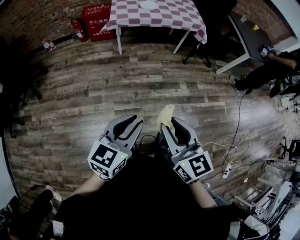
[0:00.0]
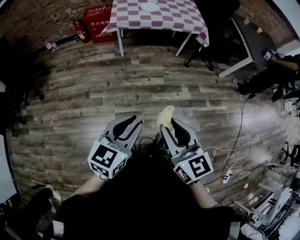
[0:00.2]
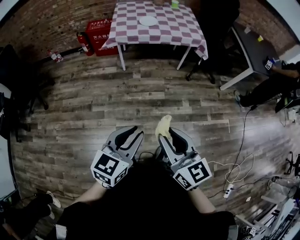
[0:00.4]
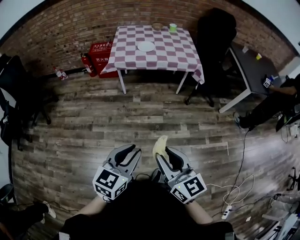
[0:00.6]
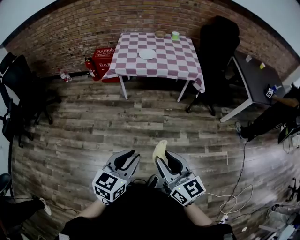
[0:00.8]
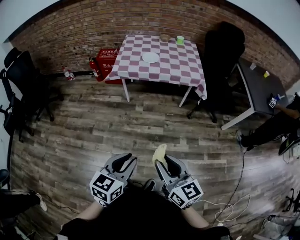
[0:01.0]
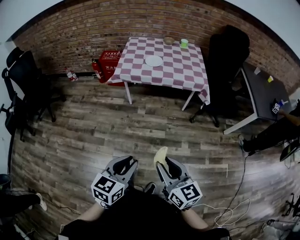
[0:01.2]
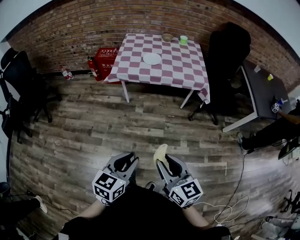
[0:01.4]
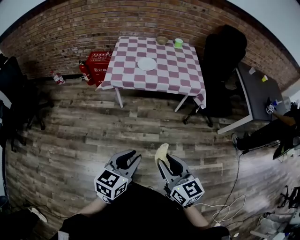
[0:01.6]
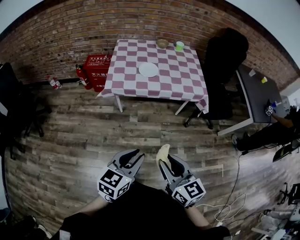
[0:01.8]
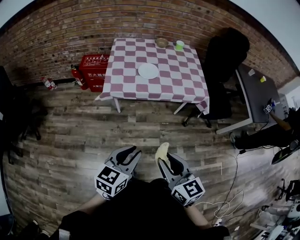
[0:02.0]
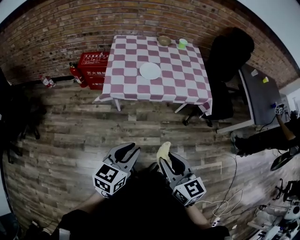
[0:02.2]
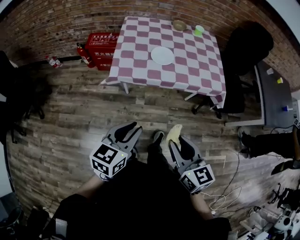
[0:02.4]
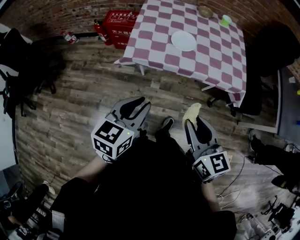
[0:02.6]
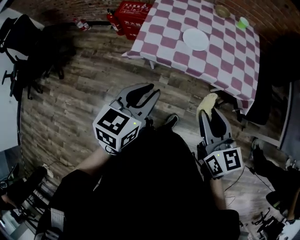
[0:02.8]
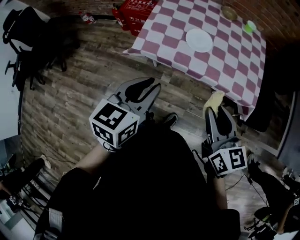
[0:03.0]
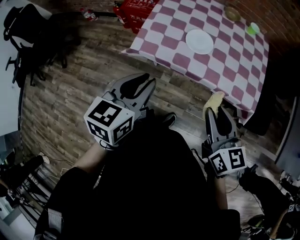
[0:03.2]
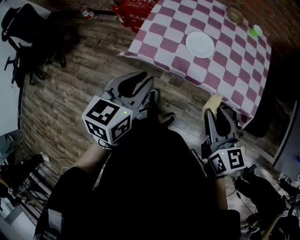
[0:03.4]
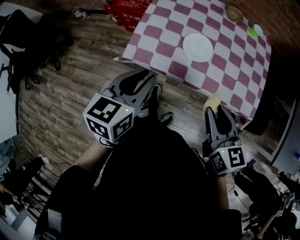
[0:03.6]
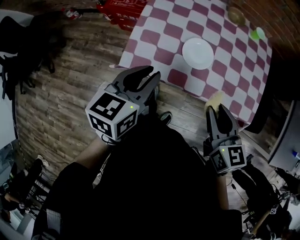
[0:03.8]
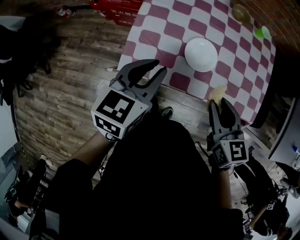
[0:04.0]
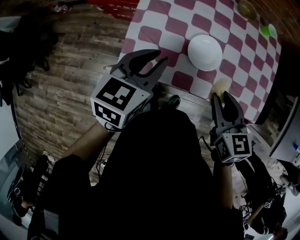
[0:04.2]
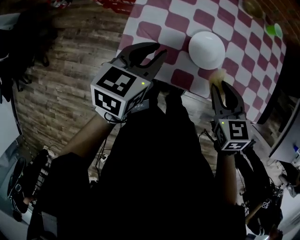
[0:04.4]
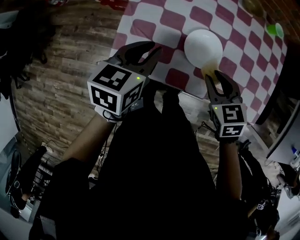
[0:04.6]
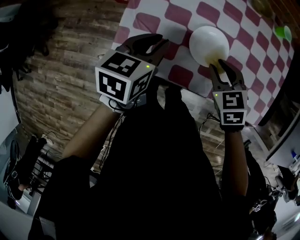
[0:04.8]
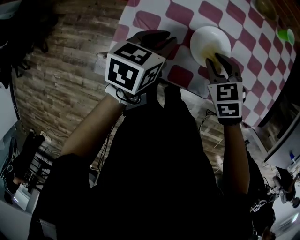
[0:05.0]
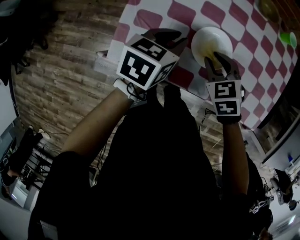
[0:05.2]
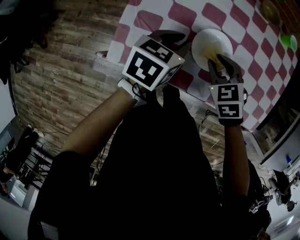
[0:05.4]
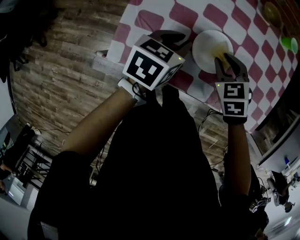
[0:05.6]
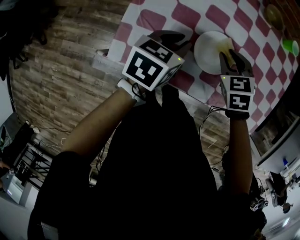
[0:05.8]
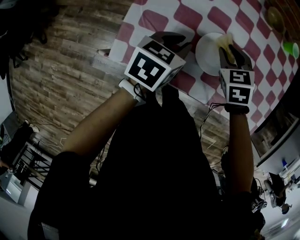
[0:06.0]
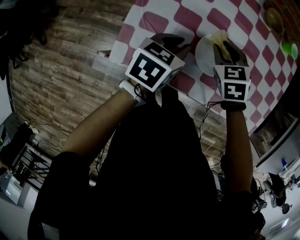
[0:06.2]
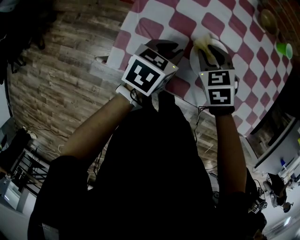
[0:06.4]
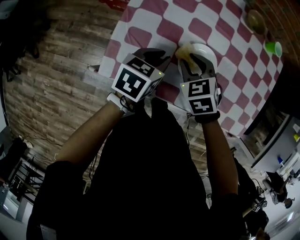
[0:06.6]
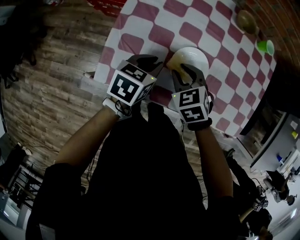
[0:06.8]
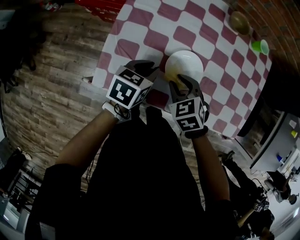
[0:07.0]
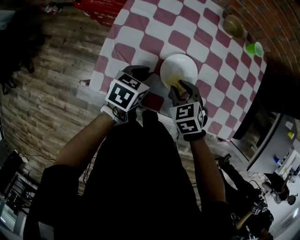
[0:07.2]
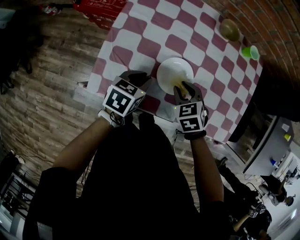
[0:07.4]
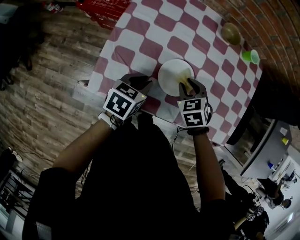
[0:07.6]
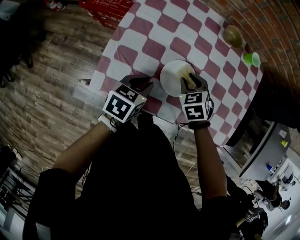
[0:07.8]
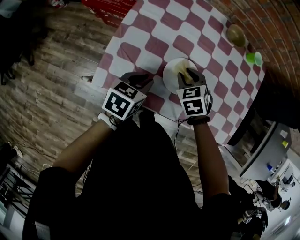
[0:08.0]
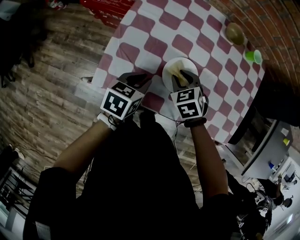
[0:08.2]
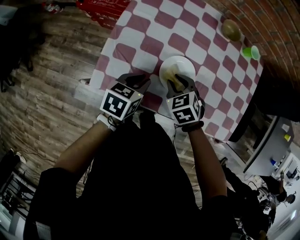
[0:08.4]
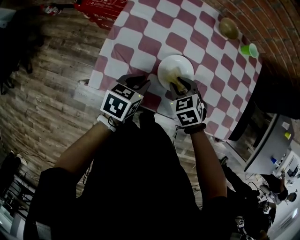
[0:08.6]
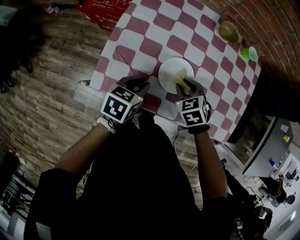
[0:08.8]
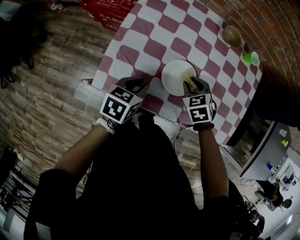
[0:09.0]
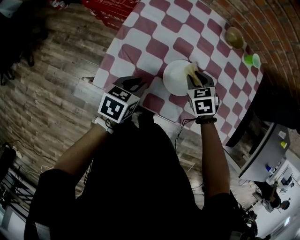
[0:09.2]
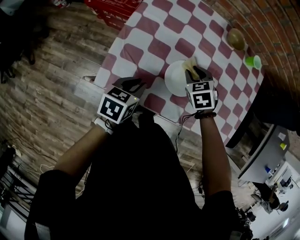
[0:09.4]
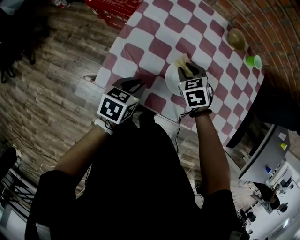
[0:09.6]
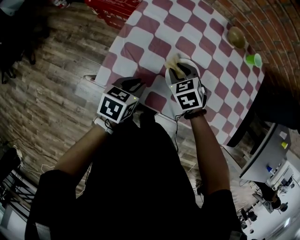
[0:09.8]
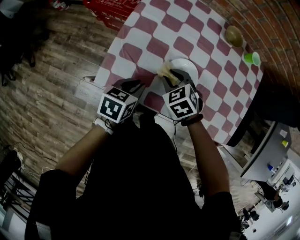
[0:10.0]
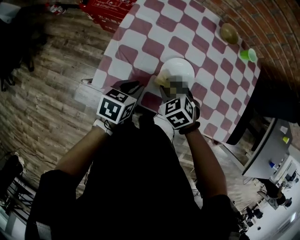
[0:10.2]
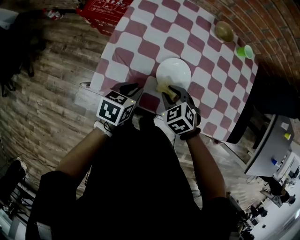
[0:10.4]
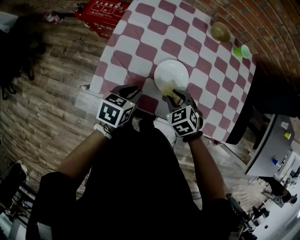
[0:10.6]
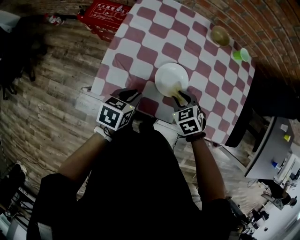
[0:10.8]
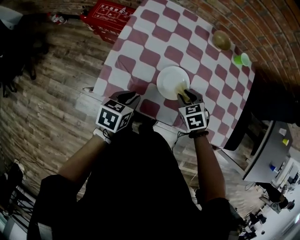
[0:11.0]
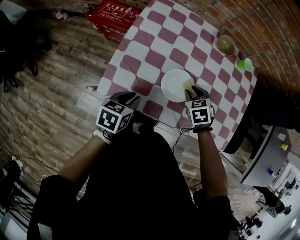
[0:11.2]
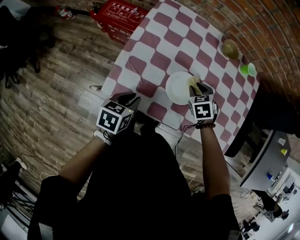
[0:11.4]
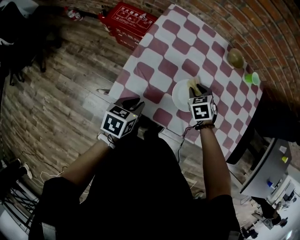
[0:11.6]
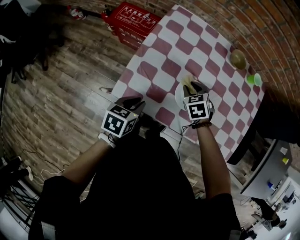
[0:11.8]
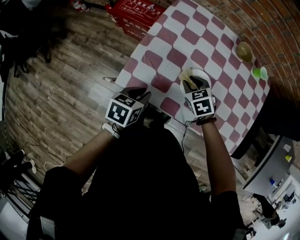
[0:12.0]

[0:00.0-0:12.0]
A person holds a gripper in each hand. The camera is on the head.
0.0 to 1.6 s: The grippers both shift forward and to the right by roughly 30 cm.
1.6 to 3.0 s: The two grippers travel together, forward, roughly 40 cm.
3.0 to 4.4 s: Both grippers travel together forward and downward, about 35 cm. The right gripper turns by roughly 30 degrees.
4.4 to 6.0 s: The left gripper goes approximately 10 cm downward and forward, while the right gripper goes roughly 20 cm forward and downward, and turns by some 20 degrees.
6.0 to 7.6 s: The right gripper travels to the left and back again, roughly 5 cm each way.
7.6 to 9.0 s: There are only small adjustments of the grippers.
9.0 to 10.4 s: The right gripper shifts roughly 10 cm backward.
10.4 to 12.0 s: The right gripper goes roughly 5 cm forward, while the left gripper is displaced to the left by roughly 5 cm.

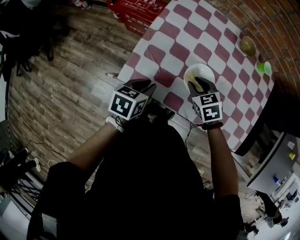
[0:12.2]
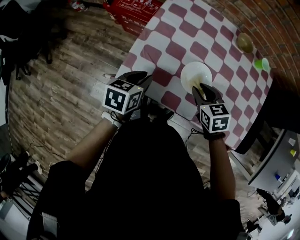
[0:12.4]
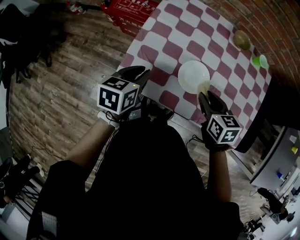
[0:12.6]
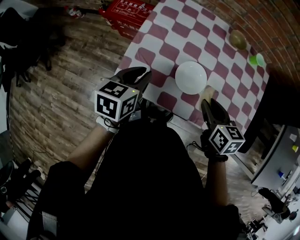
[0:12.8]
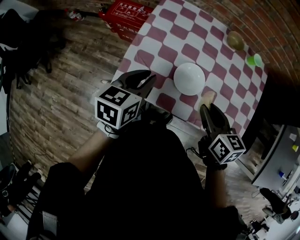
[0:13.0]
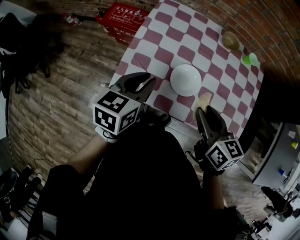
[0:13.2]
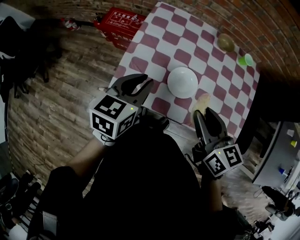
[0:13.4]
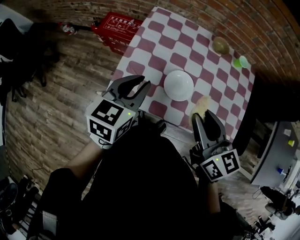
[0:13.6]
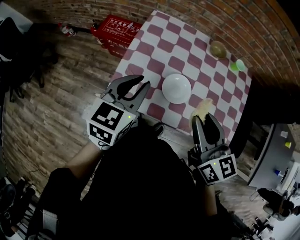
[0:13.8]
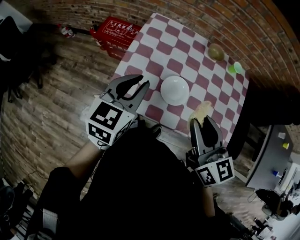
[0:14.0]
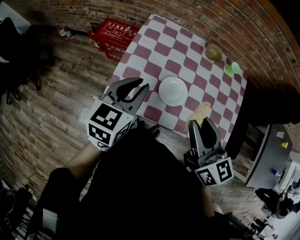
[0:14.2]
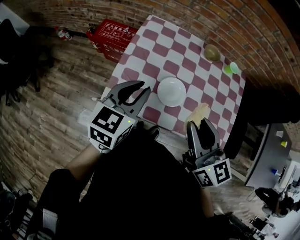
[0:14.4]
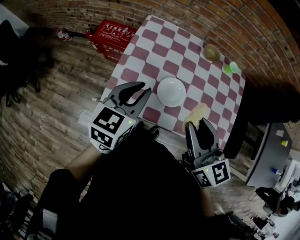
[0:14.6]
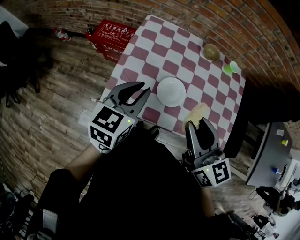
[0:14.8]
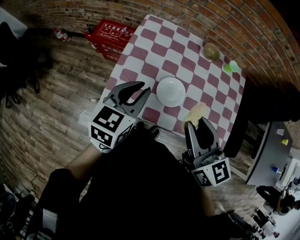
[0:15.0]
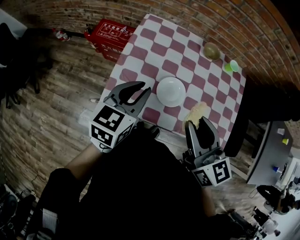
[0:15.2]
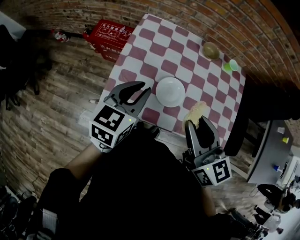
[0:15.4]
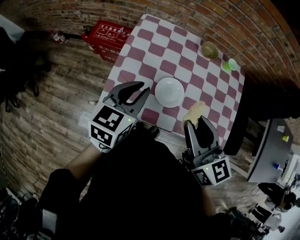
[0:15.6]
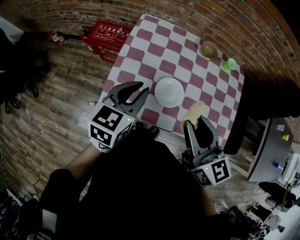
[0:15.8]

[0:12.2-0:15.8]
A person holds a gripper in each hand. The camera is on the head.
12.2 to 14.0 s: The two grippers go roughly 25 cm upward. The right gripper points its fingers roughly 40 degrees further upward. Meanwhile the left gripper changes its angle by about 30 degrees.
14.0 to 15.8 s: There are only small adjustments of the grippers.

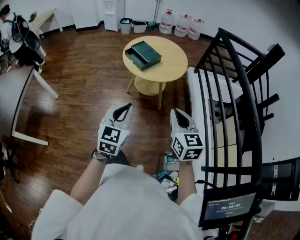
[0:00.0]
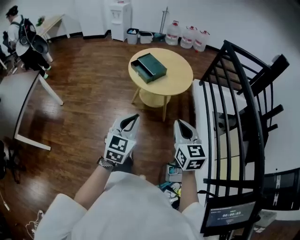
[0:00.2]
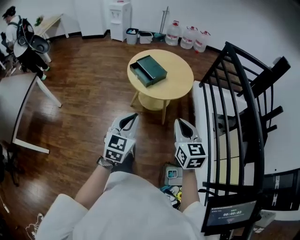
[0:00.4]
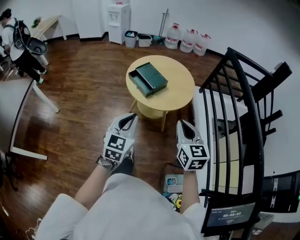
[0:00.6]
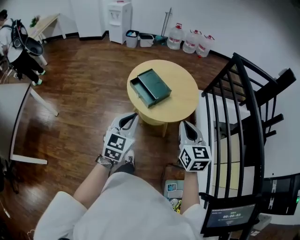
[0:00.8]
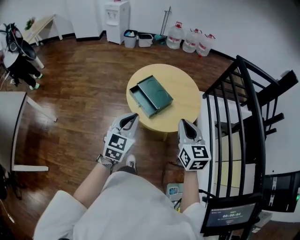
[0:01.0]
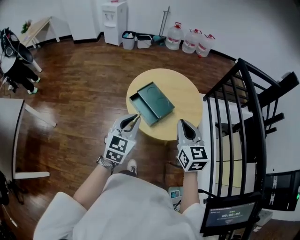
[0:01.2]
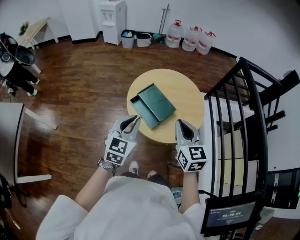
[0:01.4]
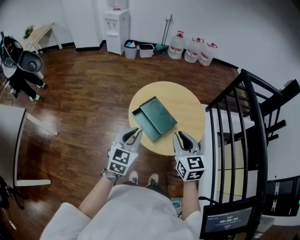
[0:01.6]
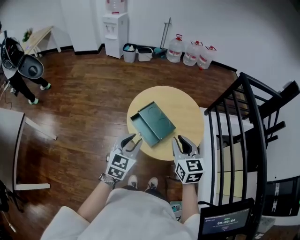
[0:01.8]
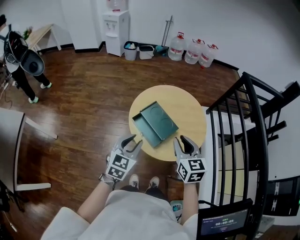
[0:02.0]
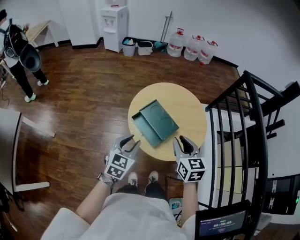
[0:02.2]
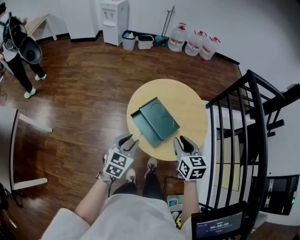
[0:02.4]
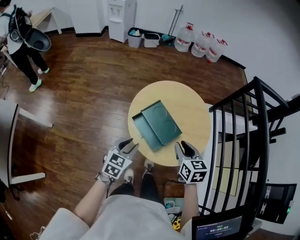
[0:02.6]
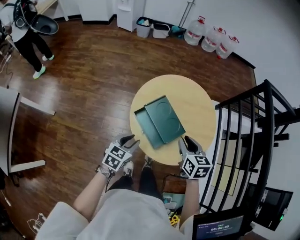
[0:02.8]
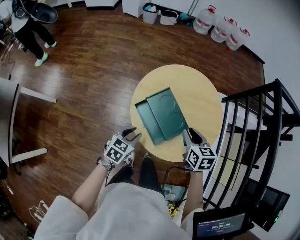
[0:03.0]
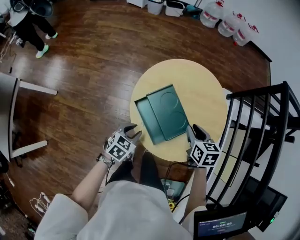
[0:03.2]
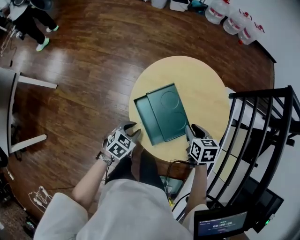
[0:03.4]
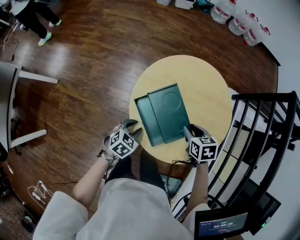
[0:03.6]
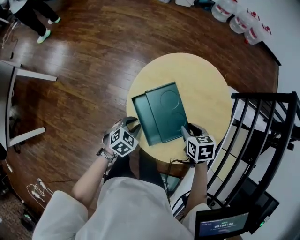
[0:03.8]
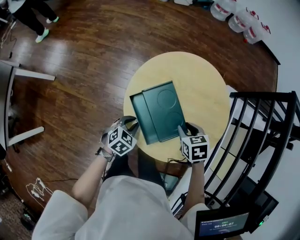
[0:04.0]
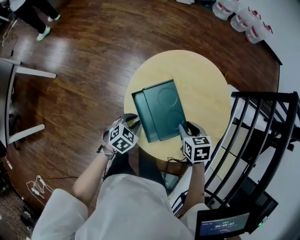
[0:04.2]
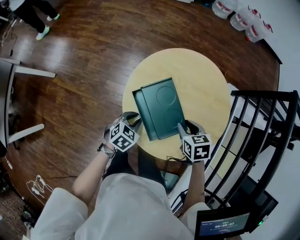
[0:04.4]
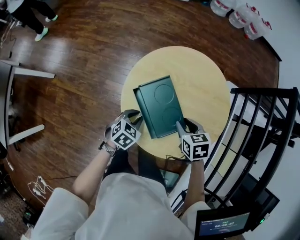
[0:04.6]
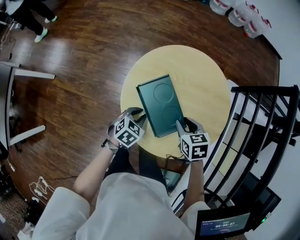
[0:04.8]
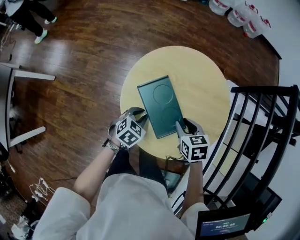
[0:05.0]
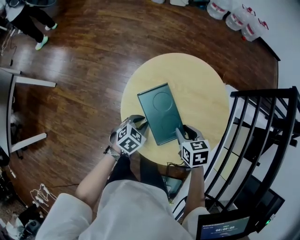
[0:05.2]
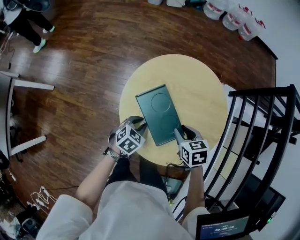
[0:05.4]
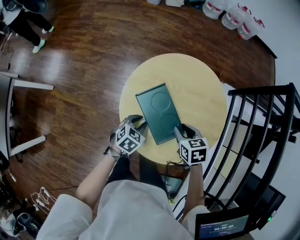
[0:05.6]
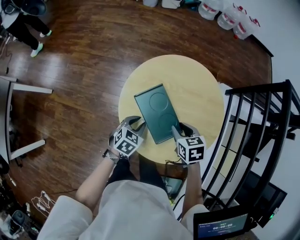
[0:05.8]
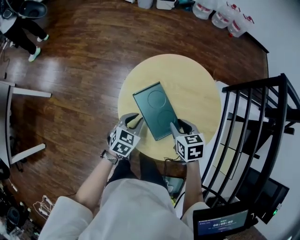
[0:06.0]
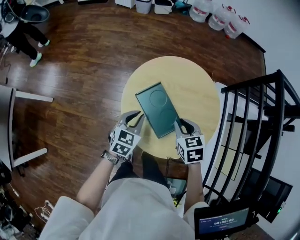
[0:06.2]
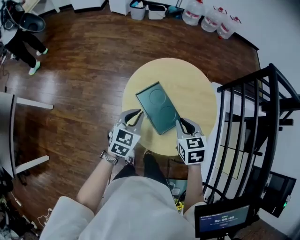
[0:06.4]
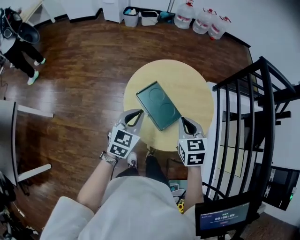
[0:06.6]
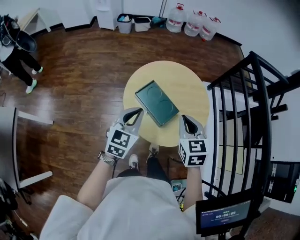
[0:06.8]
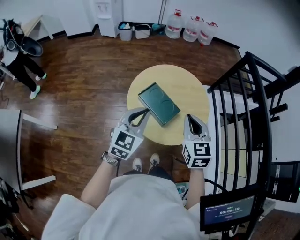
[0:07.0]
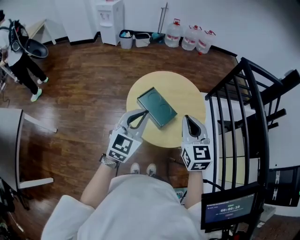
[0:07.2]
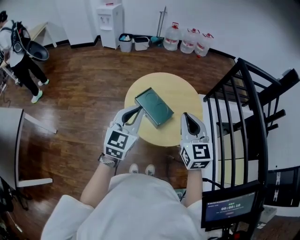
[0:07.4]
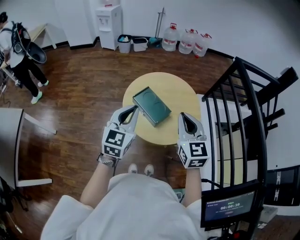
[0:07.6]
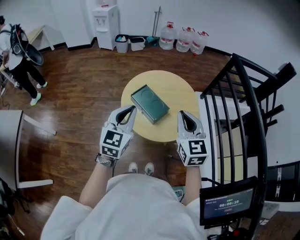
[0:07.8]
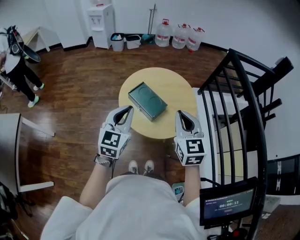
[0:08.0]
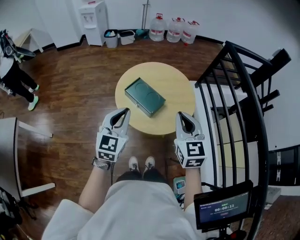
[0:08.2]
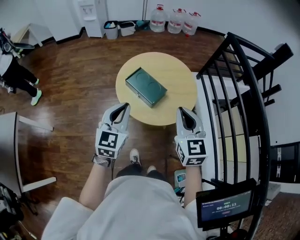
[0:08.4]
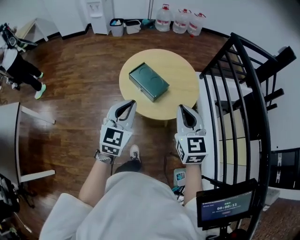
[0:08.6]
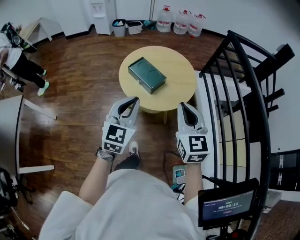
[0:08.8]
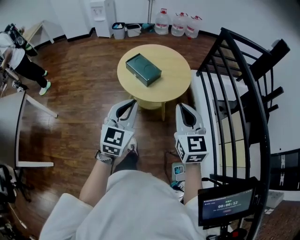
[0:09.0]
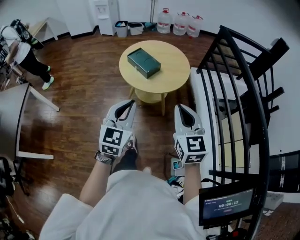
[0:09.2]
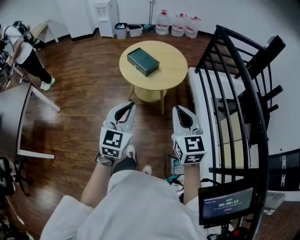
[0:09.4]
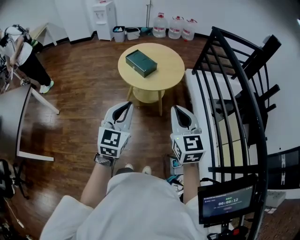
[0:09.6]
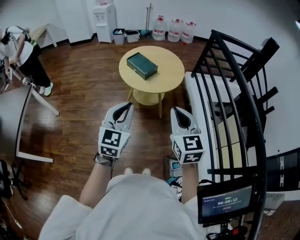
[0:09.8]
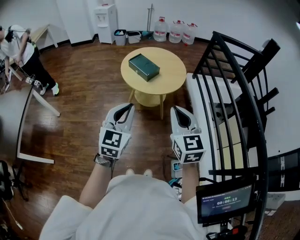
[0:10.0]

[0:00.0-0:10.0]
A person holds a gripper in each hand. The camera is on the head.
0.0 to 1.4 s: The two grippers go approximately 30 cm forward.
1.4 to 2.8 s: The left gripper travels downward by approximately 20 cm, rotates about 30 degrees, and opens. Meanwhile the right gripper is displaced downward and forward by approximately 15 cm, rotates roughly 20 degrees, and opens.
2.8 to 4.2 s: Both grippers travel together downward, about 10 cm. The left gripper turns by roughly 20 degrees; the right gripper turns by approximately 30 degrees.
4.2 to 5.8 s: The left gripper moves some 5 cm.
5.8 to 7.2 s: The two grippers go roughly 30 cm upward. The right gripper tilts its fingers some 40 degrees upward, and closes up. Meanwhile the left gripper tips its fingers upward by roughly 40 degrees, and closes.
7.2 to 8.6 s: Both grippers travel together backward, roughly 10 cm.
8.6 to 10.0 s: The grippers both shift backward by roughly 25 cm.
